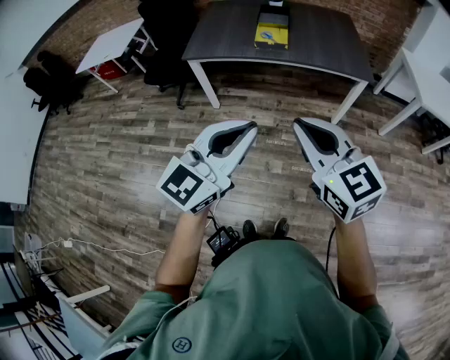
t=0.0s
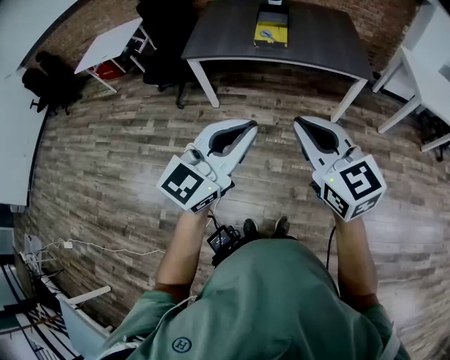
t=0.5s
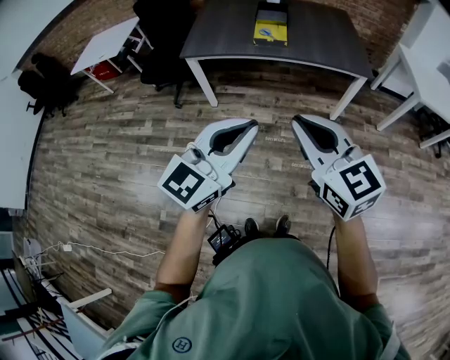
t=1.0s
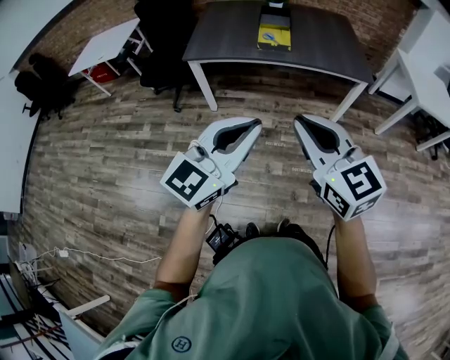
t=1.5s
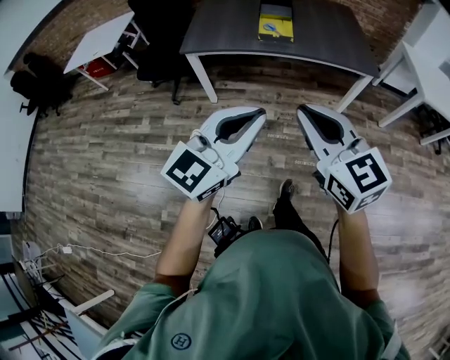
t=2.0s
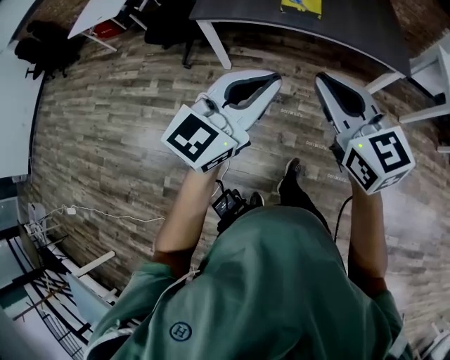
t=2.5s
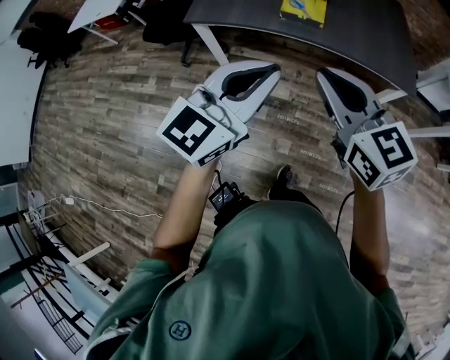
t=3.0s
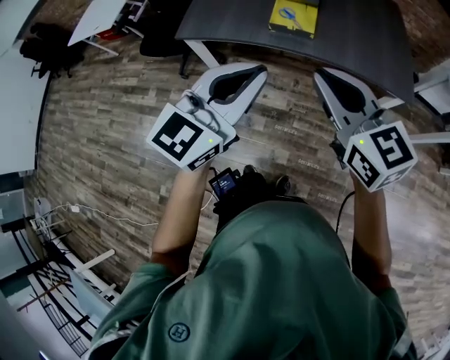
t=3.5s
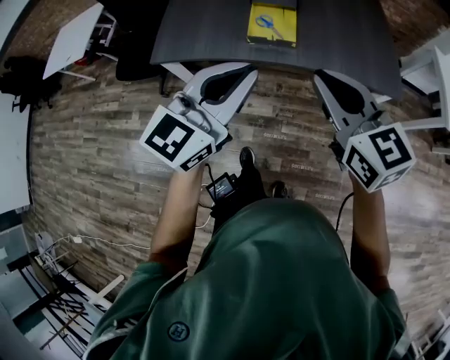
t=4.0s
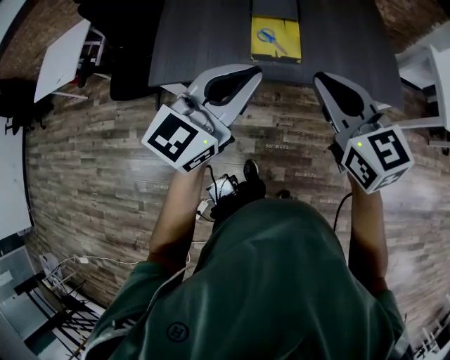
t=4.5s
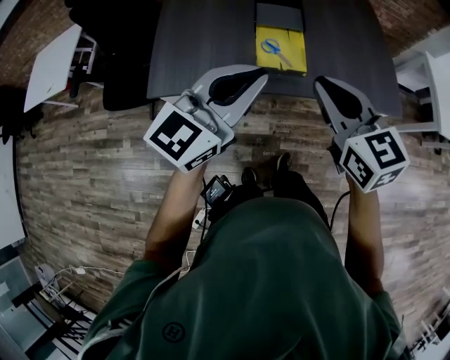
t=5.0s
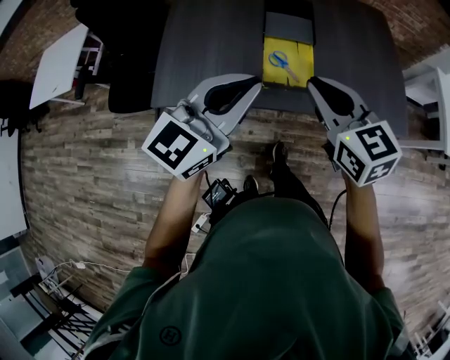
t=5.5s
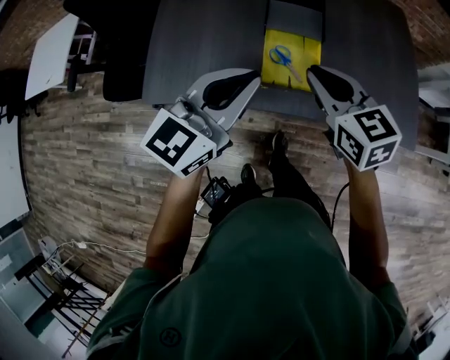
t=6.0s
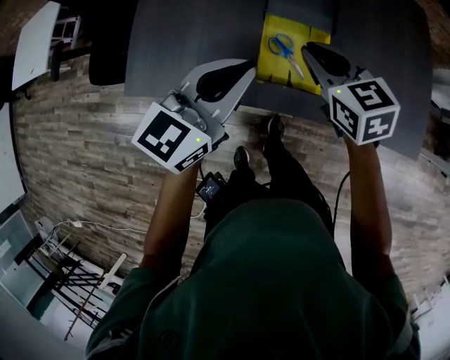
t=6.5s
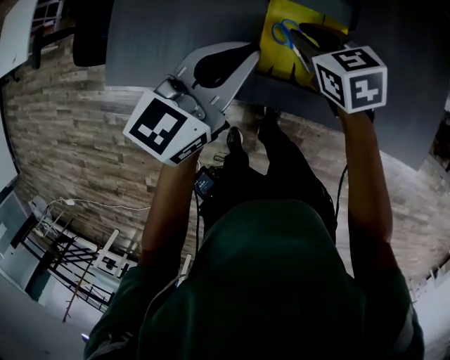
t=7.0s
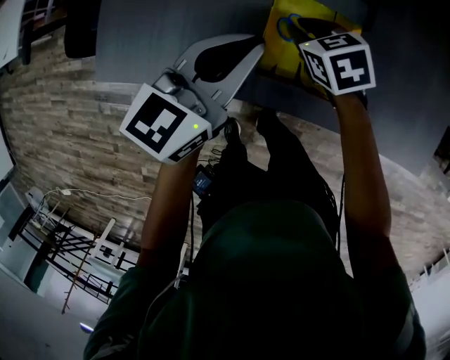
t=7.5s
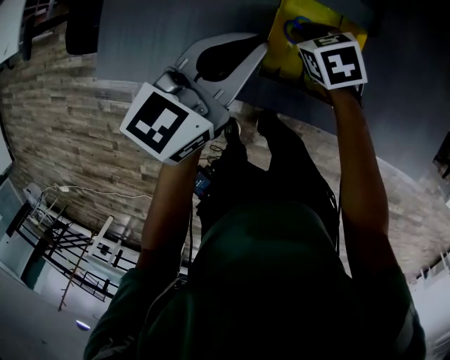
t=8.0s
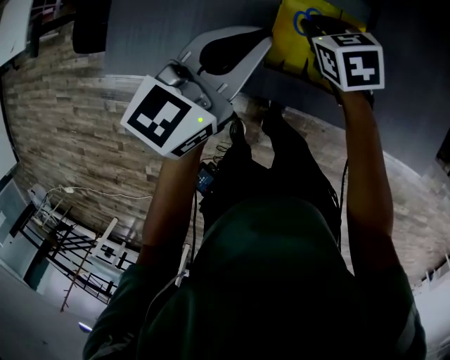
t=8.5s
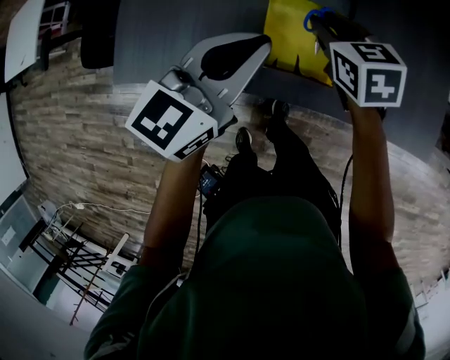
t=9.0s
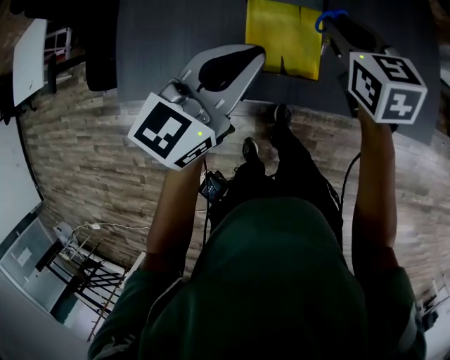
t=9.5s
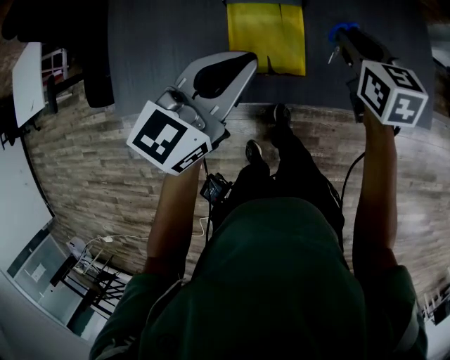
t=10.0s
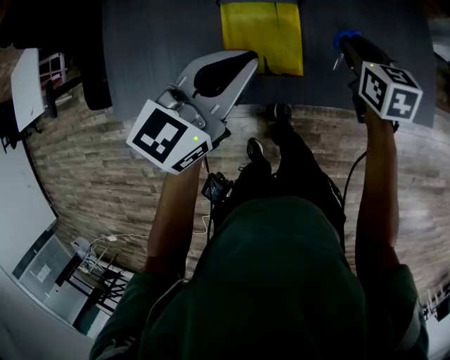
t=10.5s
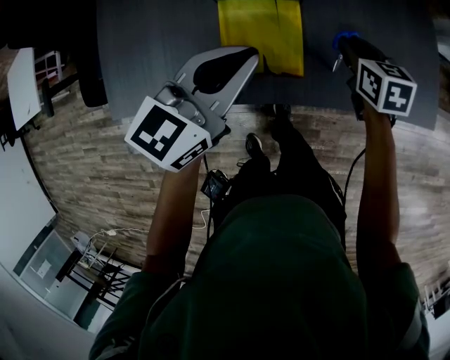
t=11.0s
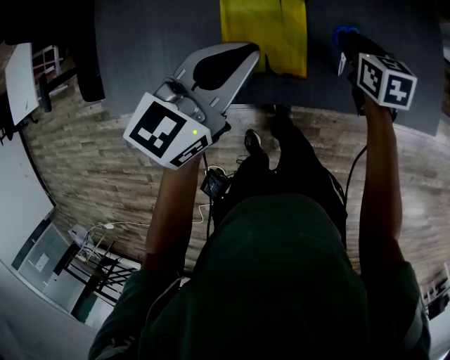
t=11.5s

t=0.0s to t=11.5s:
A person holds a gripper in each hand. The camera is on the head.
t=0.0s to t=2.0s: The two grippers go about 5 cm to the left.
t=2.0s to t=4.0s: Both grippers travel together forward, roughly 35 cm.
t=4.0s to t=6.0s: Both grippers travel together forward, roughly 25 cm.
t=6.0s to t=7.5s: The left gripper travels downward and forward by some 20 cm, while the right gripper heads downward and forward, covering roughly 30 cm, and changes its angle by roughly 30 degrees.
t=7.5s to t=9.5s: The left gripper is displaced upward, to the right and backward by approximately 15 cm. The right gripper goes some 20 cm upward and to the right, and turns by about 30 degrees.
t=9.5s to t=11.5s: The right gripper shifts some 15 cm downward and to the right. The left gripper ends up roughly 5 cm from where it was.

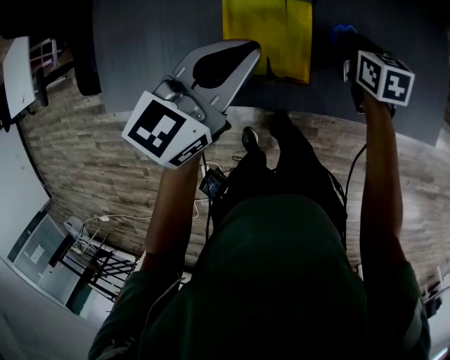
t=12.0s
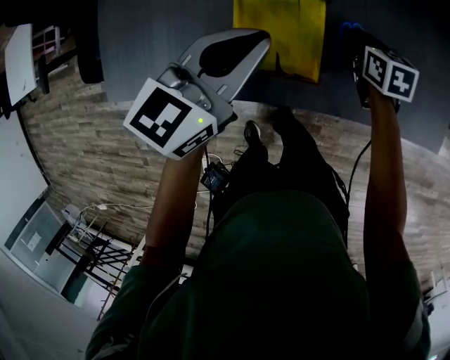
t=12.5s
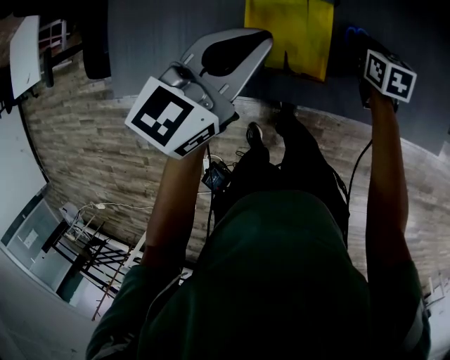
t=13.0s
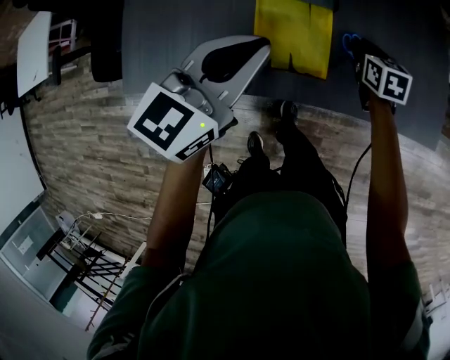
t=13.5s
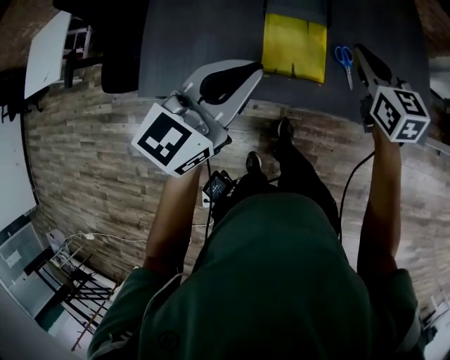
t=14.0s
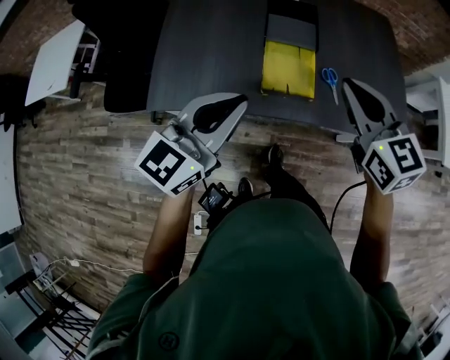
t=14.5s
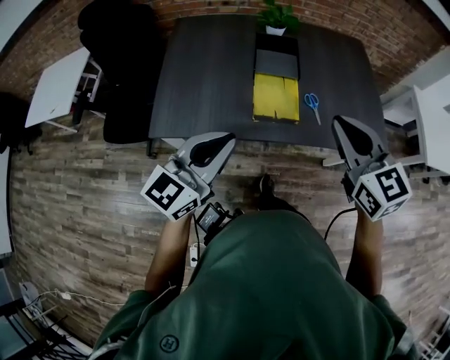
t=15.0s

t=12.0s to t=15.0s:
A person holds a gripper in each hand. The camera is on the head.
t=12.0s to t=13.5s: The left gripper shifts by roughly 5 cm.
t=13.5s to t=15.0s: The left gripper moves backward and upward, approximately 25 cm. Meanwhile the right gripper shifts about 50 cm upward and backward, tilts its fingers approximately 30 degrees upward, and closes its fingers.

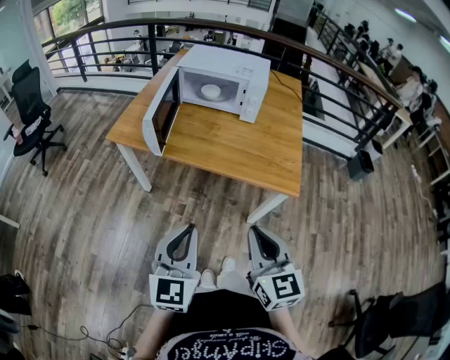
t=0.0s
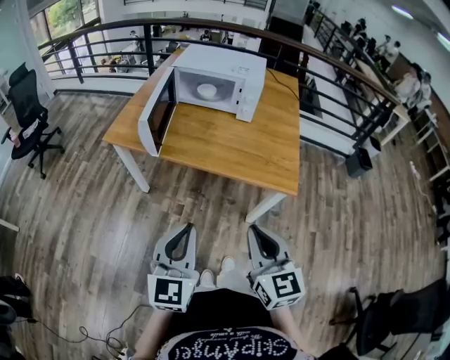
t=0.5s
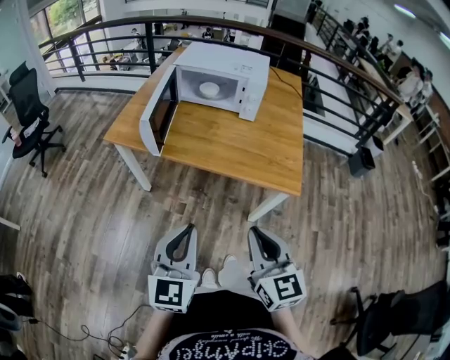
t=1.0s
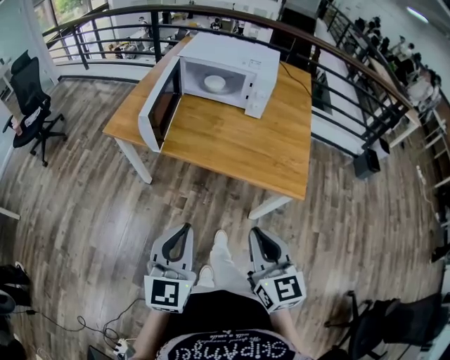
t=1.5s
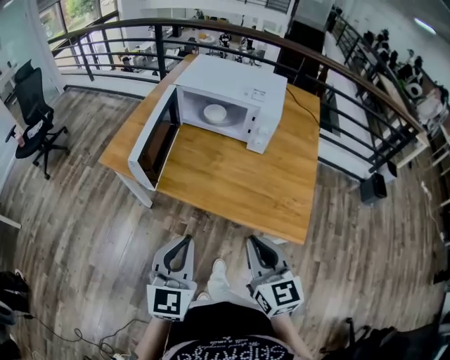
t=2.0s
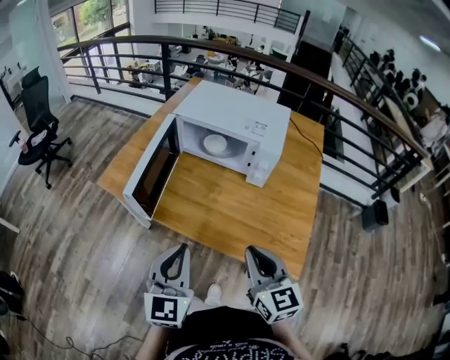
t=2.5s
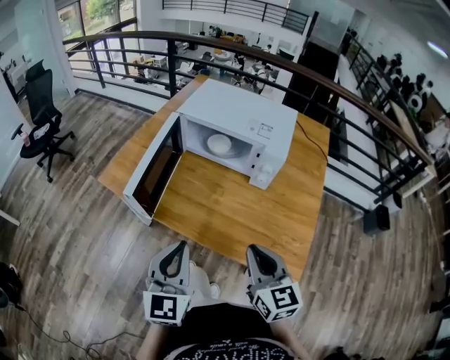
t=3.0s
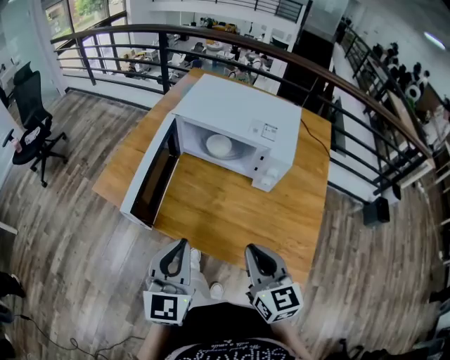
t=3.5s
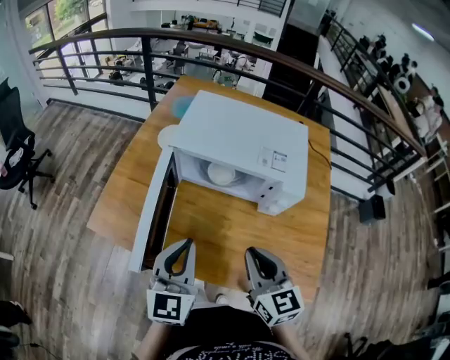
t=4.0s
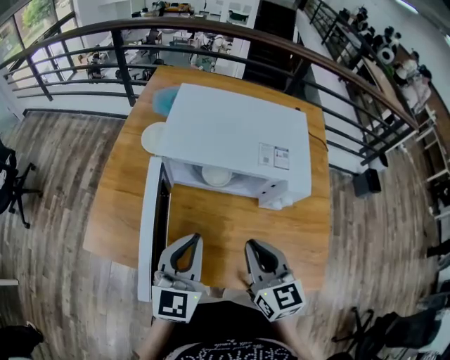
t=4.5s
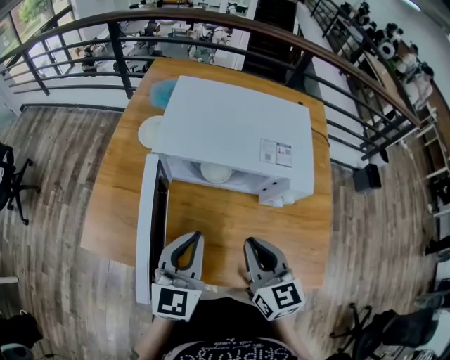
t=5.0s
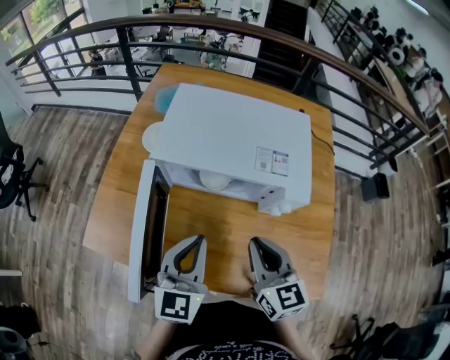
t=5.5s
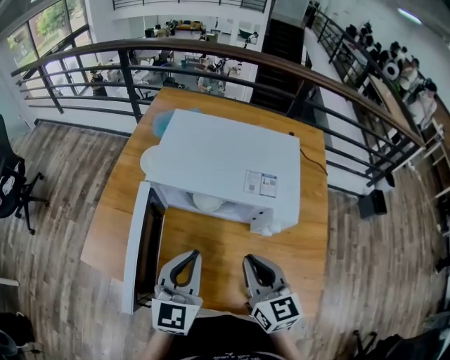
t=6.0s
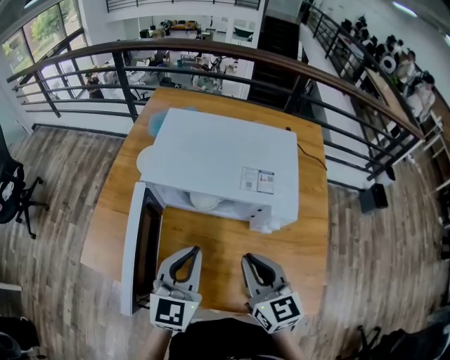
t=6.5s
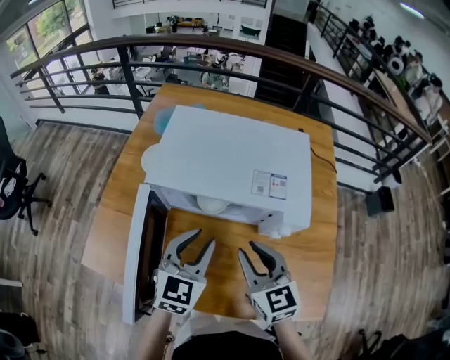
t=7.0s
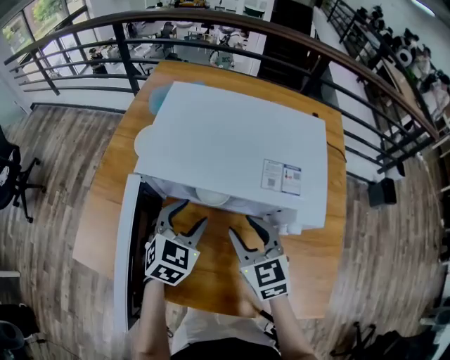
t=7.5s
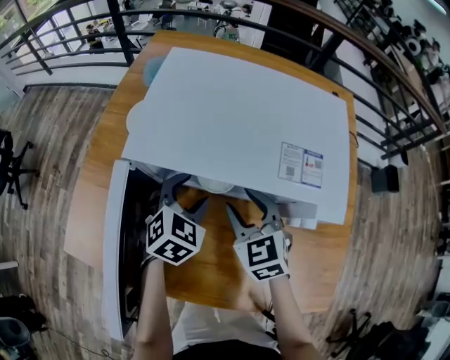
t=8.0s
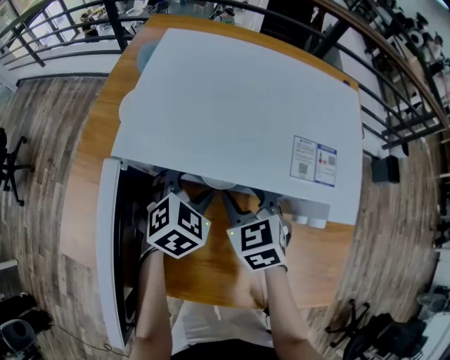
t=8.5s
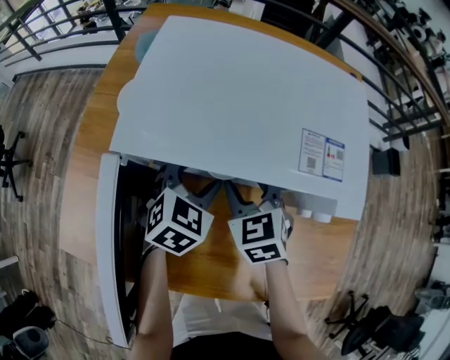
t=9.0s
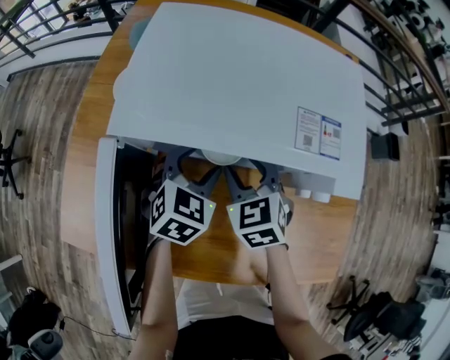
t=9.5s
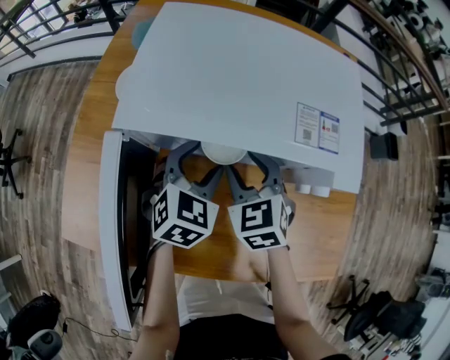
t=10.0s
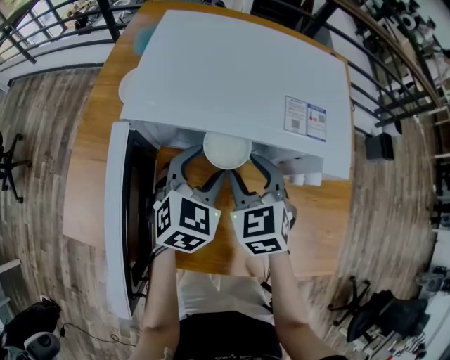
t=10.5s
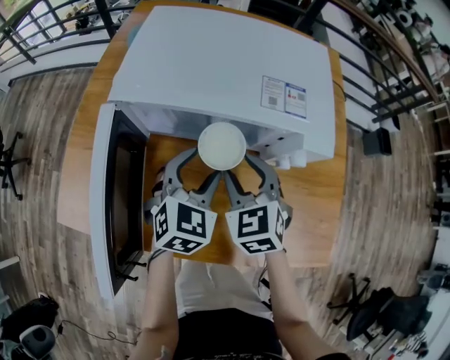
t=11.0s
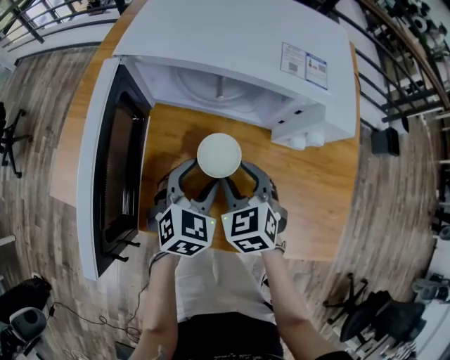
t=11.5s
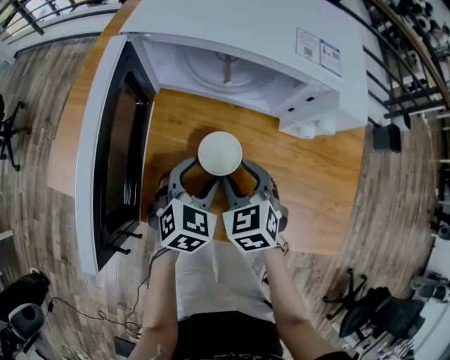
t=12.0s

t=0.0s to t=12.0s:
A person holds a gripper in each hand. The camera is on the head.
t=0.0s to t=2.0s: The grippers both shift forward by roughly 15 cm.
t=2.0s to t=4.0s: The grippers both shift forward by some 25 cm.
t=4.0s to t=6.0s: Both grippers move forward, roughly 5 cm.
t=6.0s to t=8.0s: The right gripper heads forward and downward, covering roughly 20 cm, swivels approximately 30 degrees, and opens, while the left gripper moves downward and forward, approximately 25 cm, tilts its fingers approximately 30 degrees downward, and opens.
t=8.0s to t=10.0s: There are only small adjustments of the grippers.
t=10.0s to t=12.0s: The grippers both shift backward and downward by roughly 20 cm.
